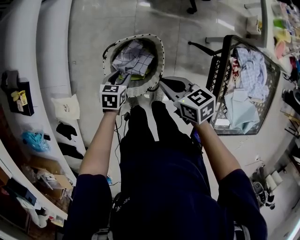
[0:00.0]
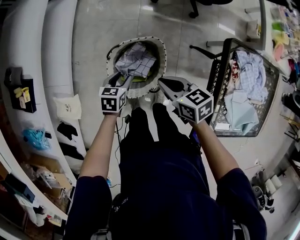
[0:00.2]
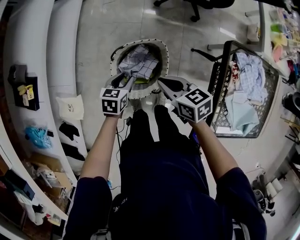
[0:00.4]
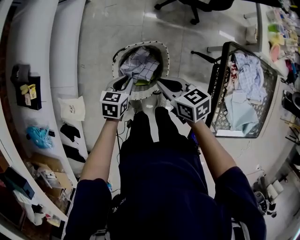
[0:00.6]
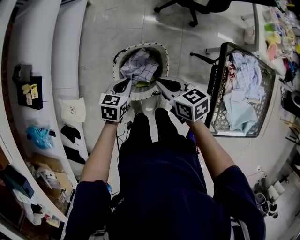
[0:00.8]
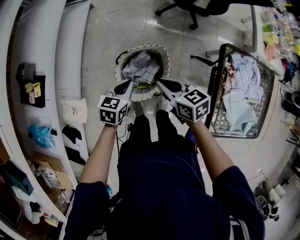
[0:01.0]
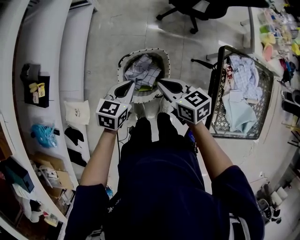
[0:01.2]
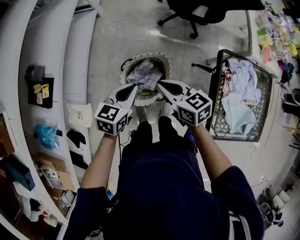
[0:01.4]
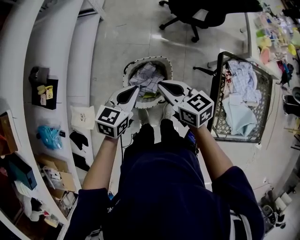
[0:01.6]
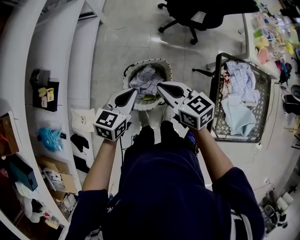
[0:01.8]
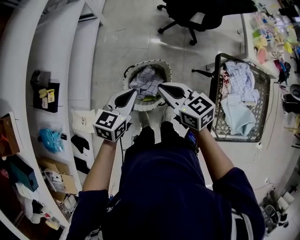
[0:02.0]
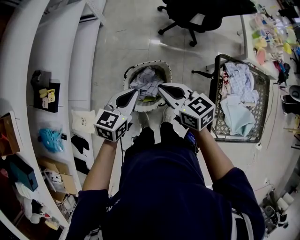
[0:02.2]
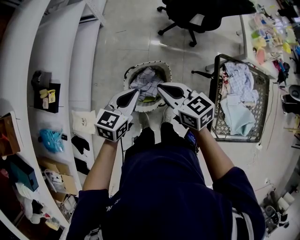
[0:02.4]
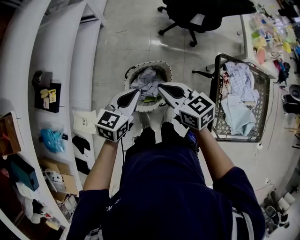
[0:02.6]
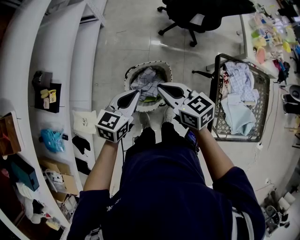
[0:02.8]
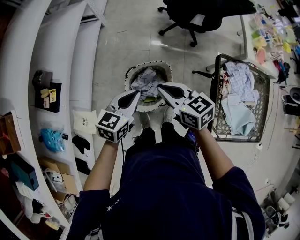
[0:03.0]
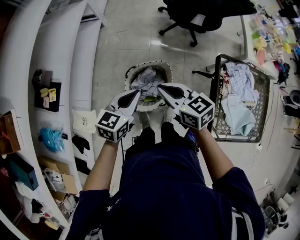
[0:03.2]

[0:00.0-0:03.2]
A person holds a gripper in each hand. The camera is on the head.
0:00.0 to 0:01.6: The right gripper goes some 15 cm upward; the left gripper is displaced upward by roughly 30 cm, turns by about 30 degrees, and closes its fingers.
0:01.6 to 0:03.2: The grippers make only small movements.

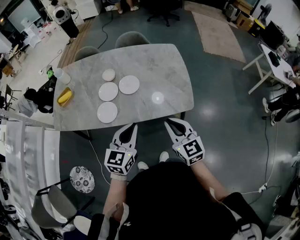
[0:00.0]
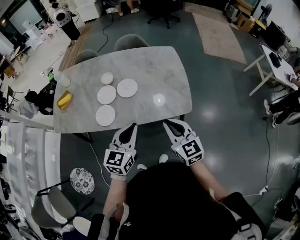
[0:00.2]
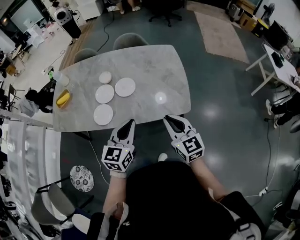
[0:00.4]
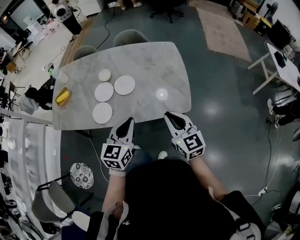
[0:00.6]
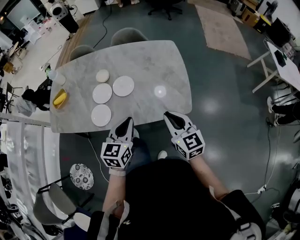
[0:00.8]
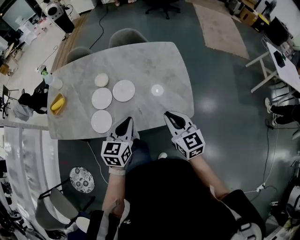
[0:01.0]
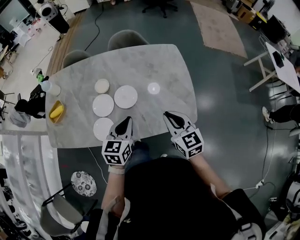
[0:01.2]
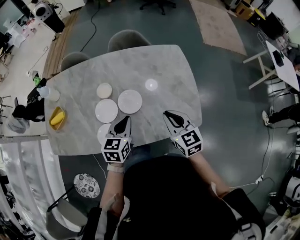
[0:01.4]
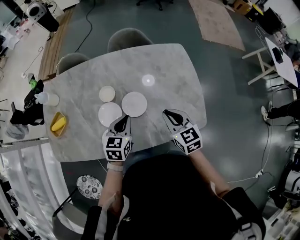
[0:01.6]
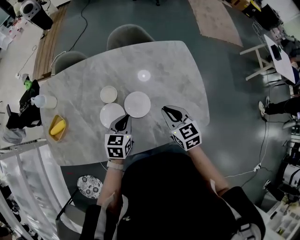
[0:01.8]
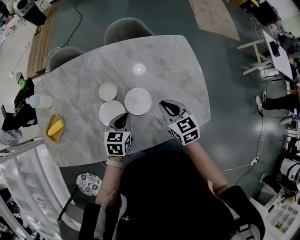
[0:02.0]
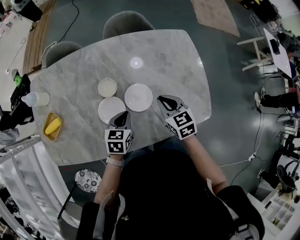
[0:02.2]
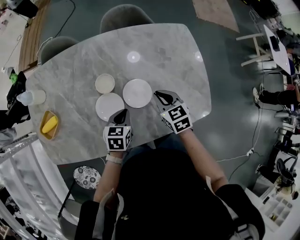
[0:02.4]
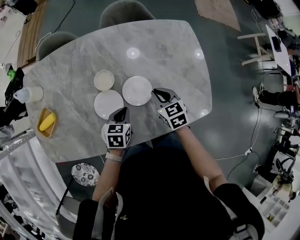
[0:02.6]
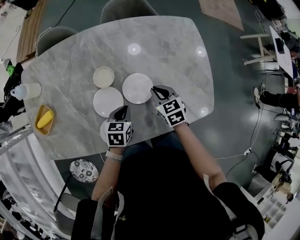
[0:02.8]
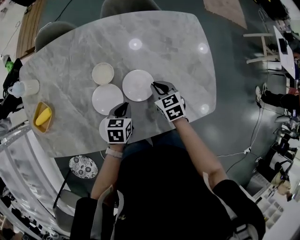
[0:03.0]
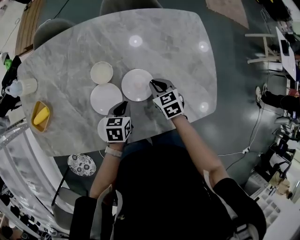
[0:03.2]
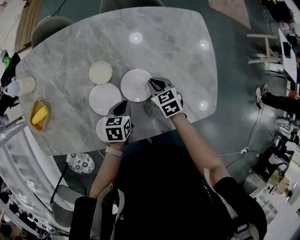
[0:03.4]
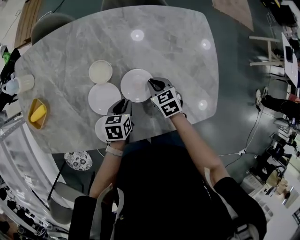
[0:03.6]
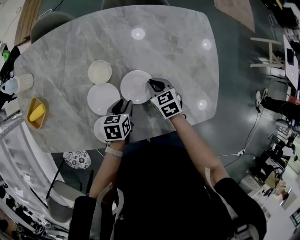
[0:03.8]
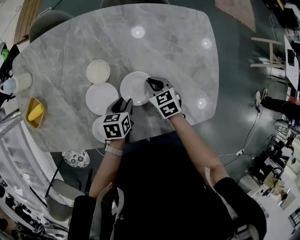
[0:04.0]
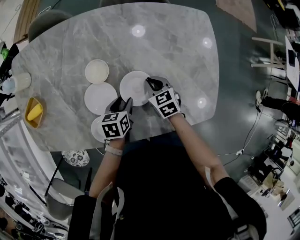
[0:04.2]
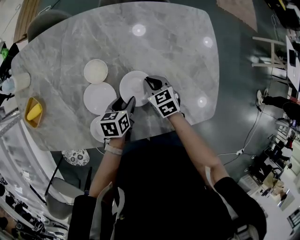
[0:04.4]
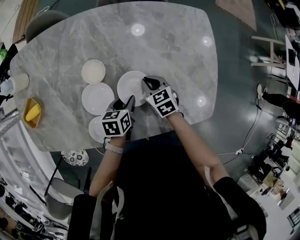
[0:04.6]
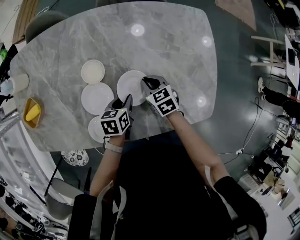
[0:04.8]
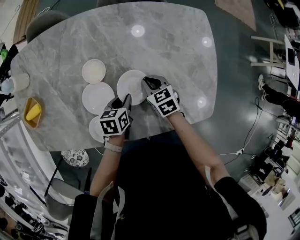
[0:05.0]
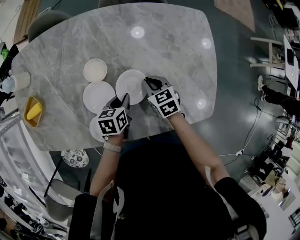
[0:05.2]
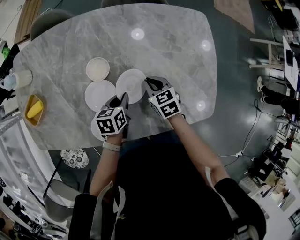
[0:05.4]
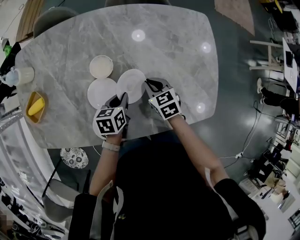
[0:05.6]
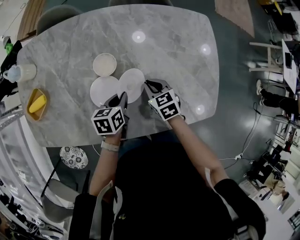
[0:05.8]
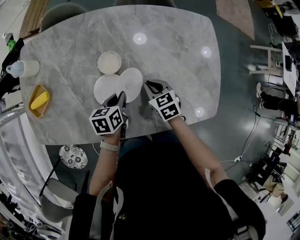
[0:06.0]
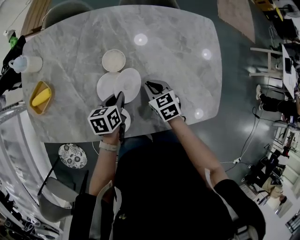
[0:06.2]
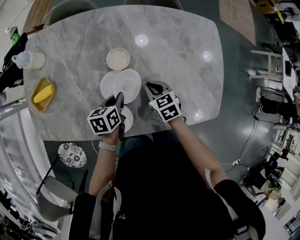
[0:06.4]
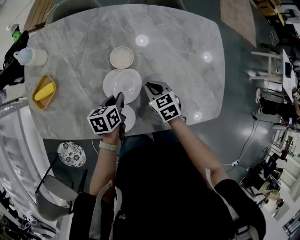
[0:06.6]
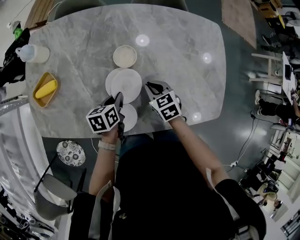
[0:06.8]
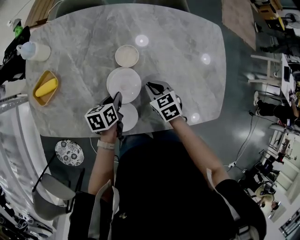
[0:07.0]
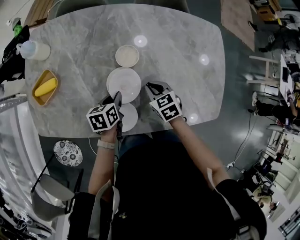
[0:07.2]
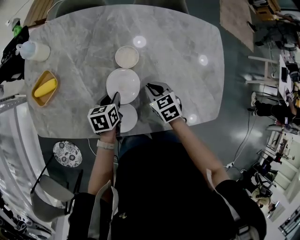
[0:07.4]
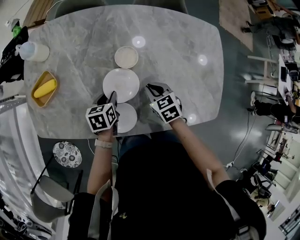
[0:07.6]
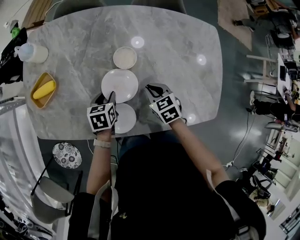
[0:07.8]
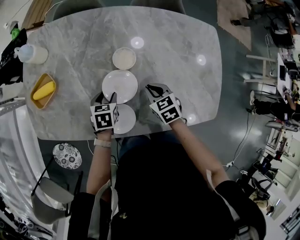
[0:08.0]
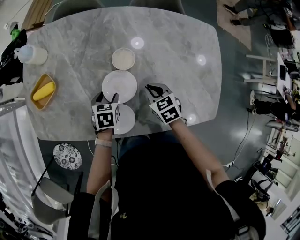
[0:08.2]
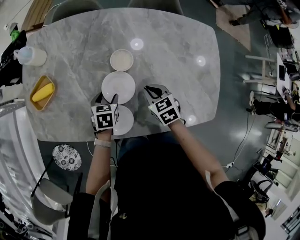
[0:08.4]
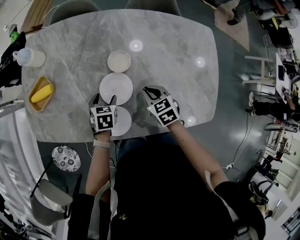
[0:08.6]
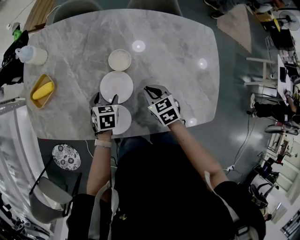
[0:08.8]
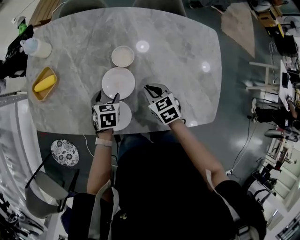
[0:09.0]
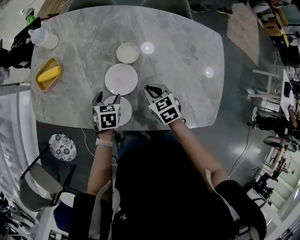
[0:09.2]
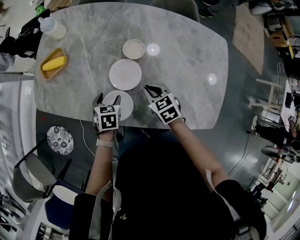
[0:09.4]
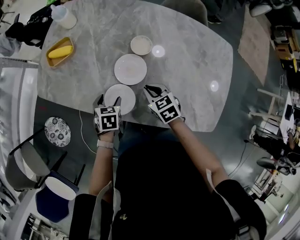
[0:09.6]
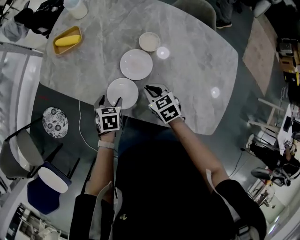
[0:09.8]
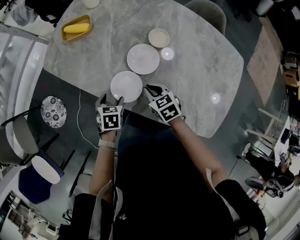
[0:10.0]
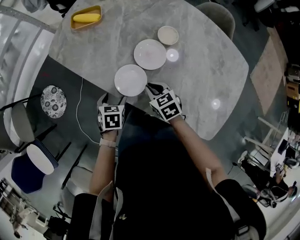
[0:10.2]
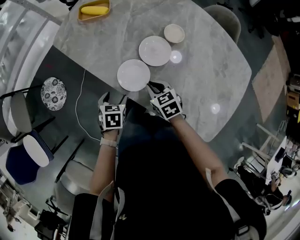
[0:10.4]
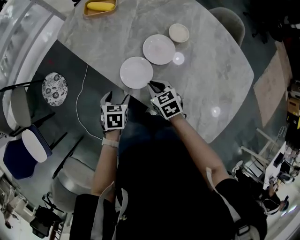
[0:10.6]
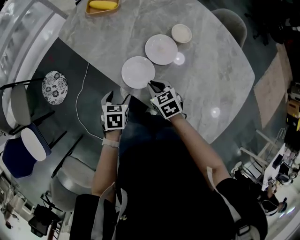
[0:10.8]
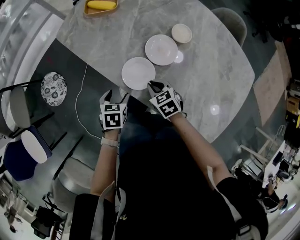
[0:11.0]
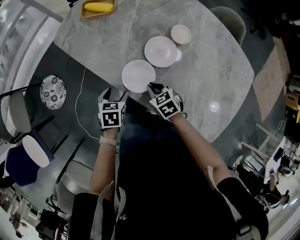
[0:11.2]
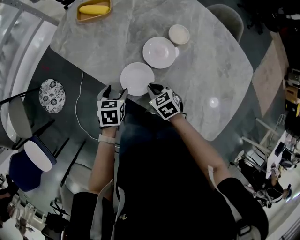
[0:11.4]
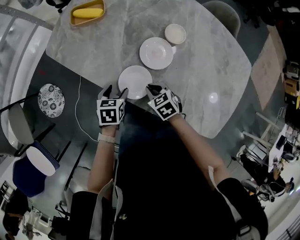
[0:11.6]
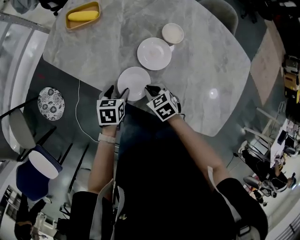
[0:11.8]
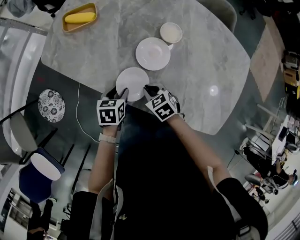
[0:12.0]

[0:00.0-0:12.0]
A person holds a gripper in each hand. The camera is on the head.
0:00.0 to 0:01.6: Both grippers move forward, approximately 30 cm. The left gripper changes its angle by some 20 degrees.
0:01.6 to 0:03.0: The left gripper heads downward, covering approximately 15 cm, and rotates roughly 20 degrees. The right gripper is displaced downward and forward by roughly 20 cm, and rotates about 20 degrees.
0:03.0 to 0:04.4: The right gripper goes roughly 5 cm downward, while the left gripper moves some 5 cm, and opens its fingers.
0:04.4 to 0:06.0: The two grippers go some 5 cm to the left. The left gripper closes.
0:06.0 to 0:07.6: The right gripper heads to the left, covering approximately 5 cm. Meanwhile the left gripper heads to the left, covering about 10 cm.
0:07.6 to 0:09.0: The left gripper changes its angle by approximately 20 degrees, and opens up.
0:09.0 to 0:10.4: The right gripper moves some 15 cm, and turns by roughly 30 degrees; the left gripper changes place by approximately 25 cm, and changes its angle by some 30 degrees.
0:10.4 to 0:12.0: The left gripper is displaced forward by approximately 5 cm, and closes its fingers, while the right gripper changes place by about 5 cm.

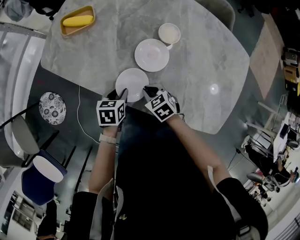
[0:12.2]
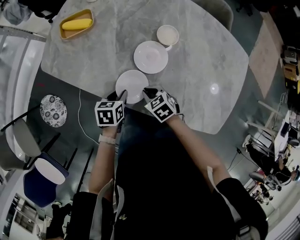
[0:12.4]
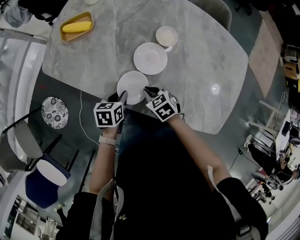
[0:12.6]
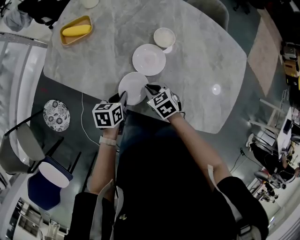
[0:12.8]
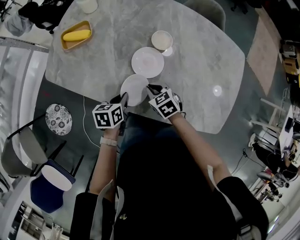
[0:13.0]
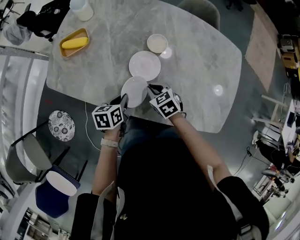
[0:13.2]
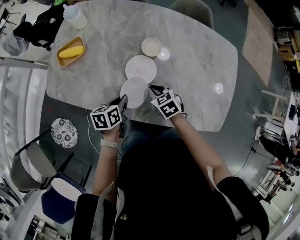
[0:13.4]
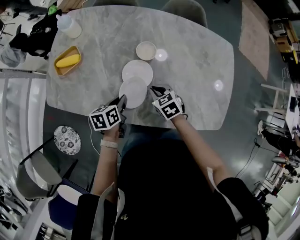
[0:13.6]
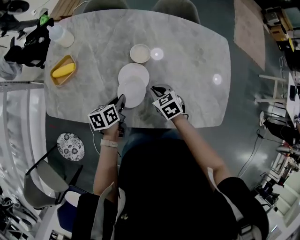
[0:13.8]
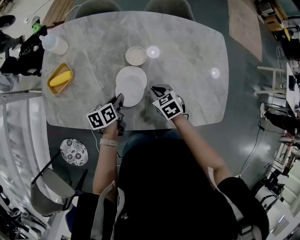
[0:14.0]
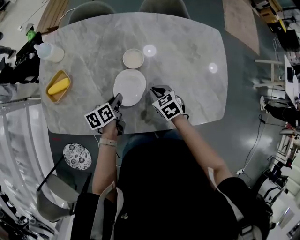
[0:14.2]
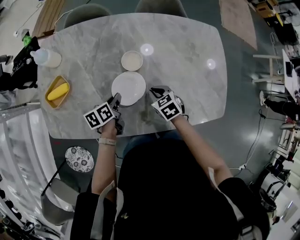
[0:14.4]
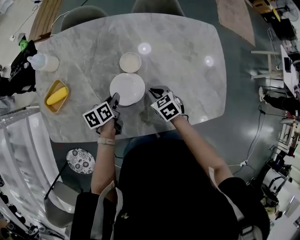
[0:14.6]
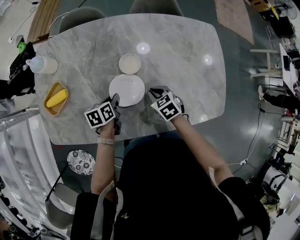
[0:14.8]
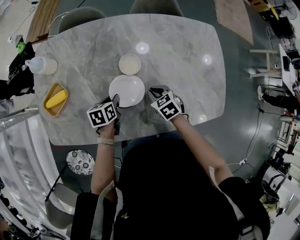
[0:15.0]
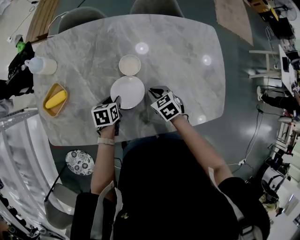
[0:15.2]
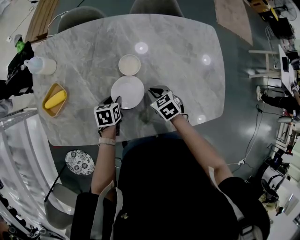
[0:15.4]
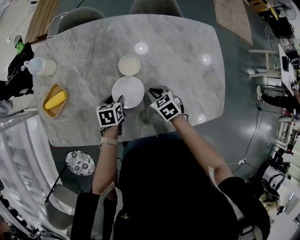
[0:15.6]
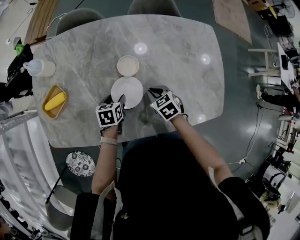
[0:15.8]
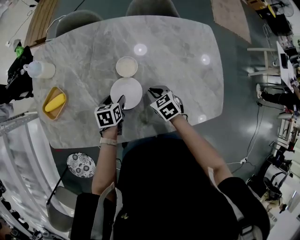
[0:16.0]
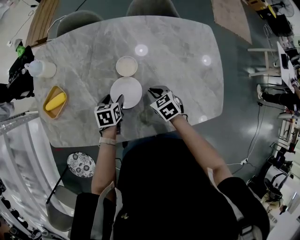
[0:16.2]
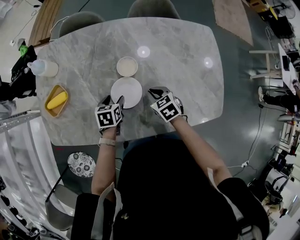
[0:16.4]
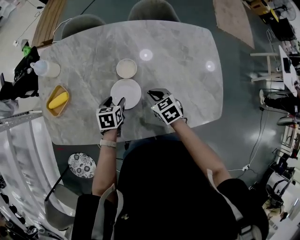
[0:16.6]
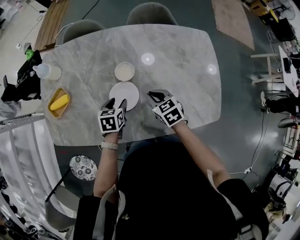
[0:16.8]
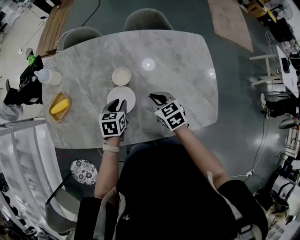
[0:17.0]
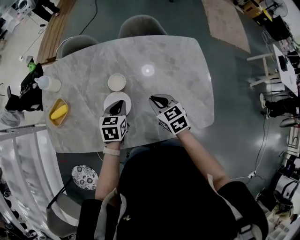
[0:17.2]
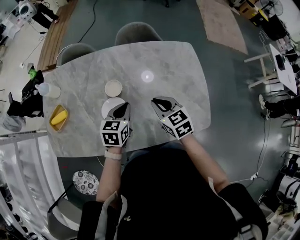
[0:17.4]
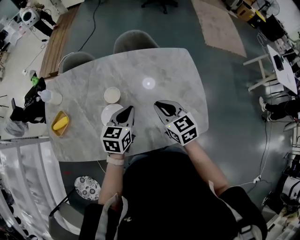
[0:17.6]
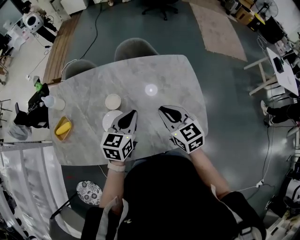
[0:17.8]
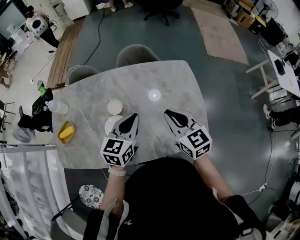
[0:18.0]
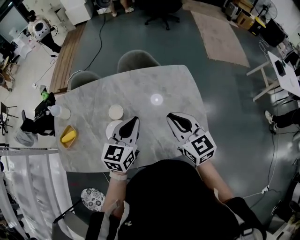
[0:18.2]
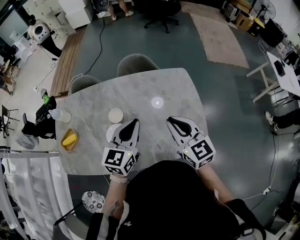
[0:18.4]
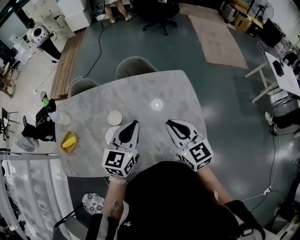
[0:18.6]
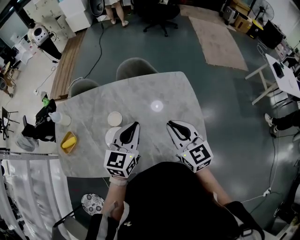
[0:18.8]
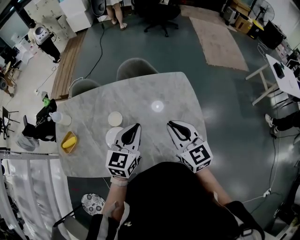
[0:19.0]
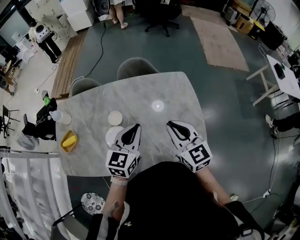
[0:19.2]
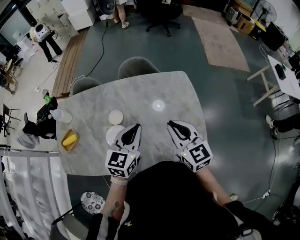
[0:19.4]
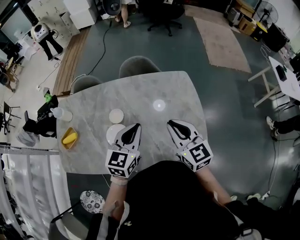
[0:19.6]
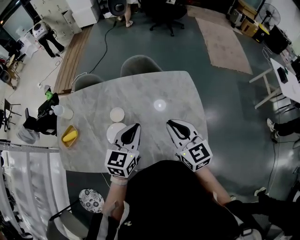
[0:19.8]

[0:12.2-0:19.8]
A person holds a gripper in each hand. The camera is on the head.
0:12.2 to 0:13.8: The right gripper travels to the right, forward and upward by roughly 15 cm, and swivels roughly 20 degrees, while the left gripper shifts roughly 10 cm forward, upward and to the right, and closes.
0:13.8 to 0:15.2: The left gripper heads forward and downward, covering approximately 10 cm, turns by approximately 30 degrees, and opens.
0:15.2 to 0:16.8: The right gripper shifts approximately 10 cm upward, while the left gripper goes about 10 cm upward and to the right.
0:16.8 to 0:18.2: Both grippers move upward and to the right, some 35 cm. The left gripper points its fingers approximately 40 degrees further upward, and closes its fingers. Meanwhile the right gripper tips its fingers upward by about 30 degrees.
0:18.2 to 0:19.8: There are only small adjustments of the grippers.
